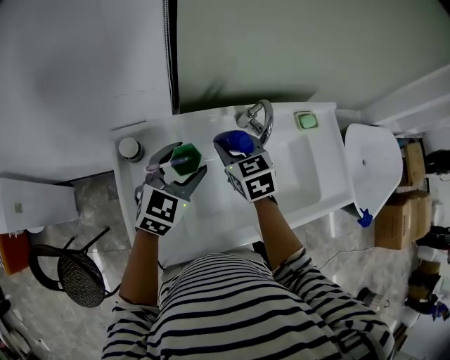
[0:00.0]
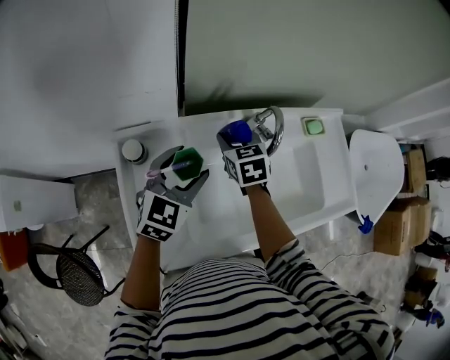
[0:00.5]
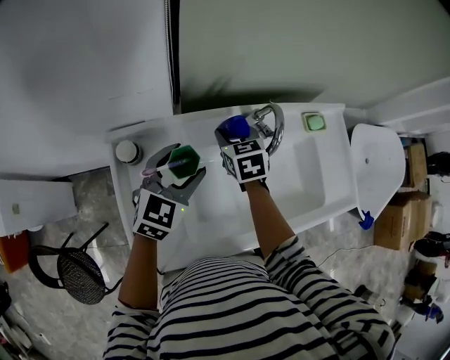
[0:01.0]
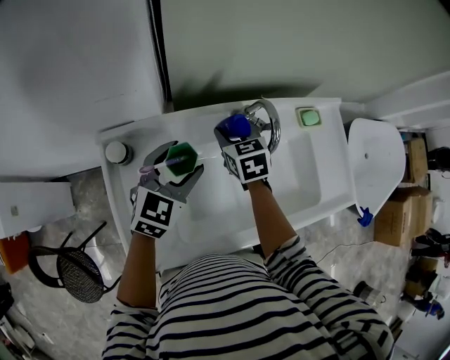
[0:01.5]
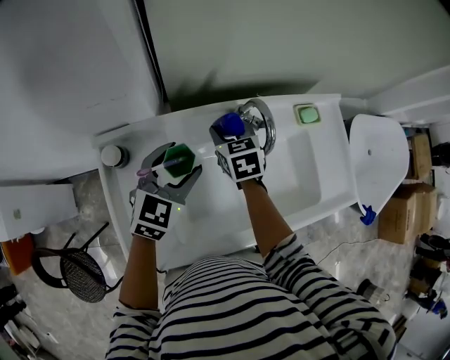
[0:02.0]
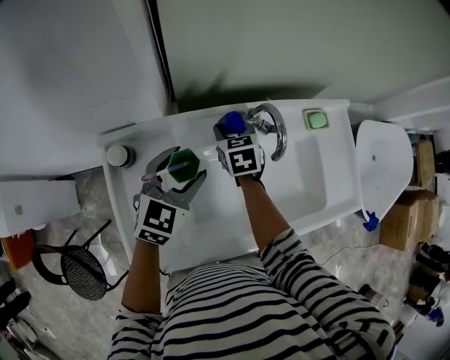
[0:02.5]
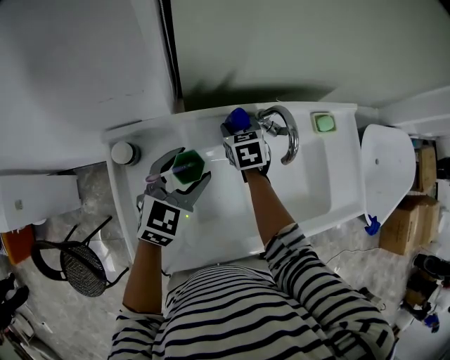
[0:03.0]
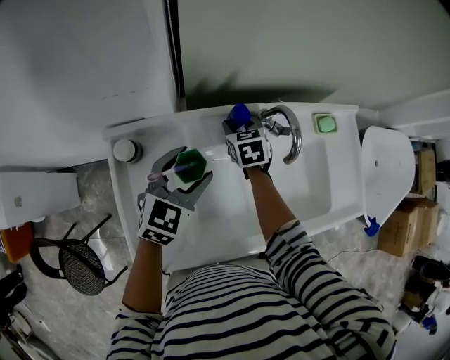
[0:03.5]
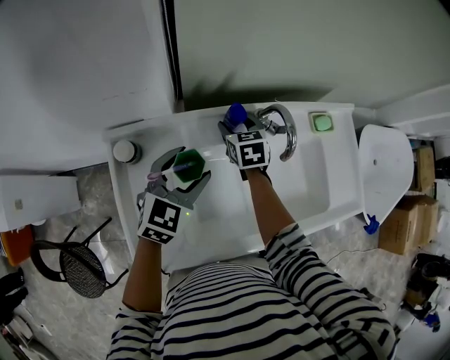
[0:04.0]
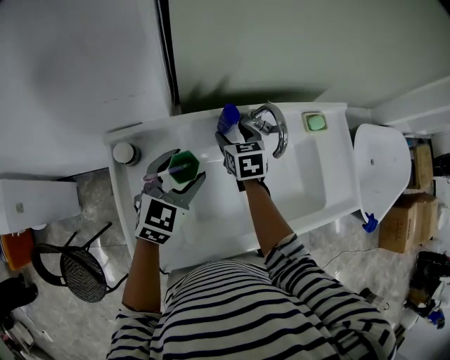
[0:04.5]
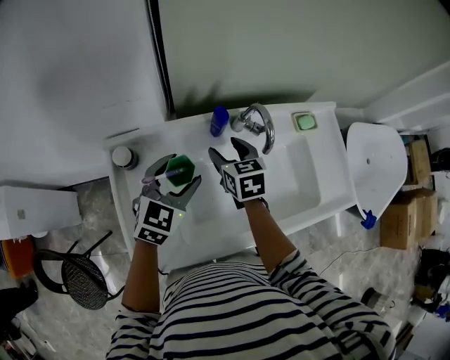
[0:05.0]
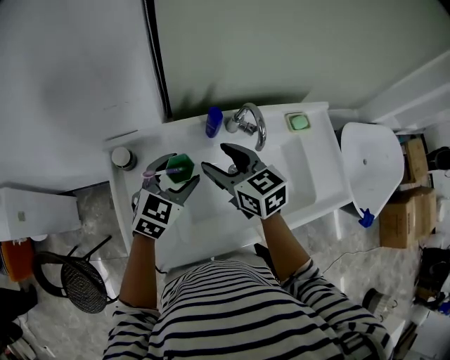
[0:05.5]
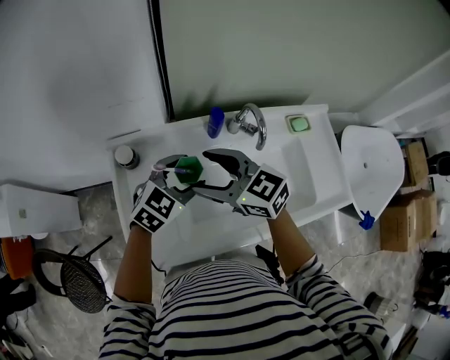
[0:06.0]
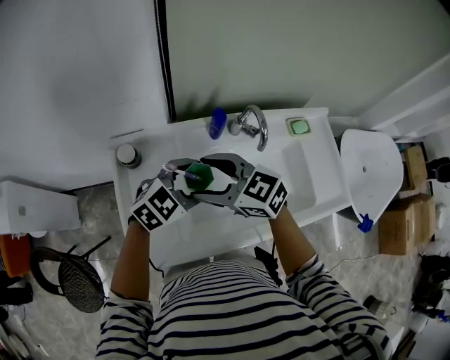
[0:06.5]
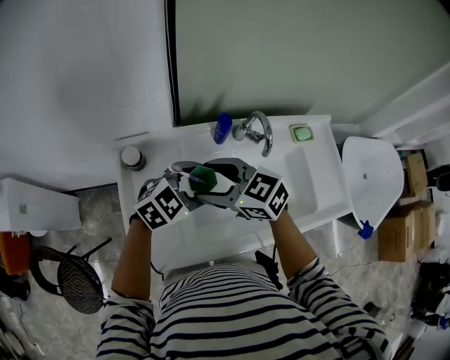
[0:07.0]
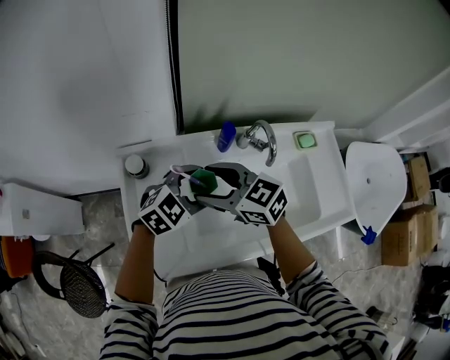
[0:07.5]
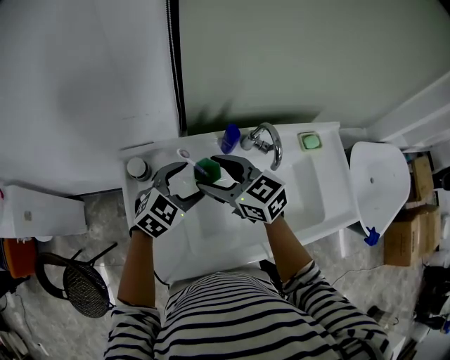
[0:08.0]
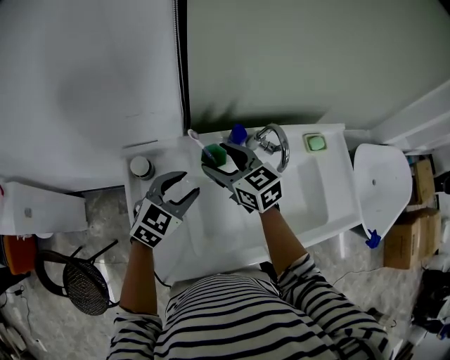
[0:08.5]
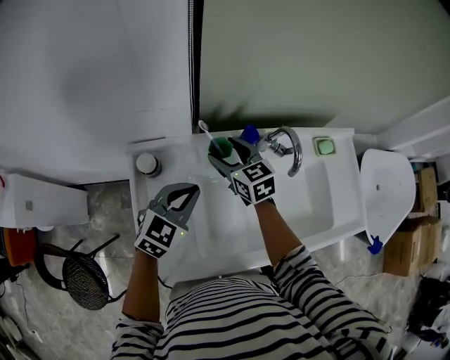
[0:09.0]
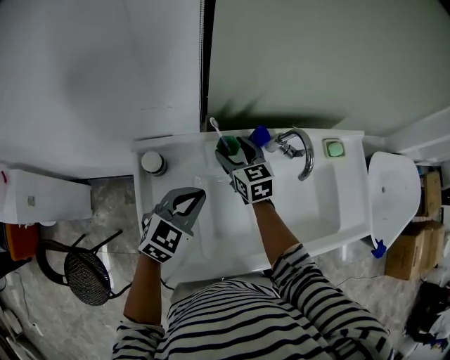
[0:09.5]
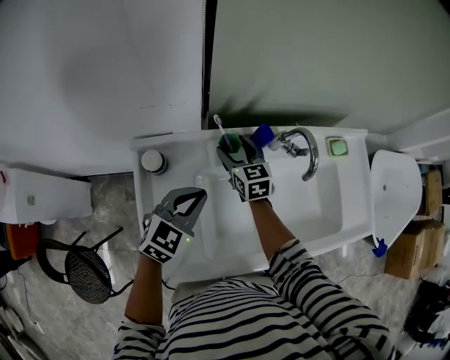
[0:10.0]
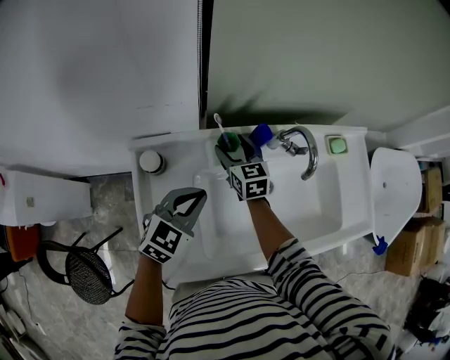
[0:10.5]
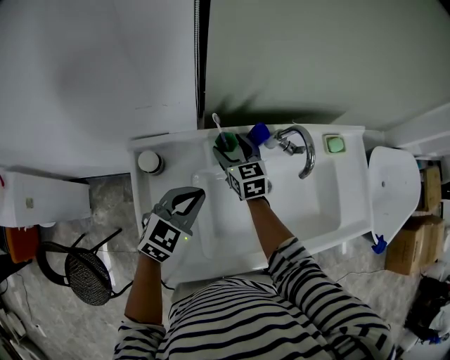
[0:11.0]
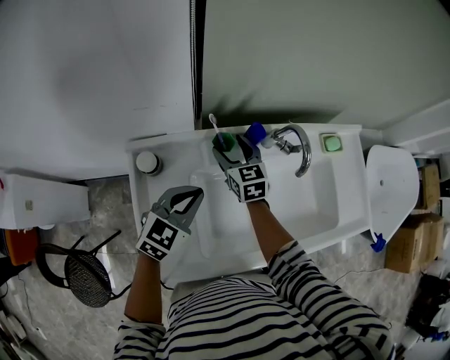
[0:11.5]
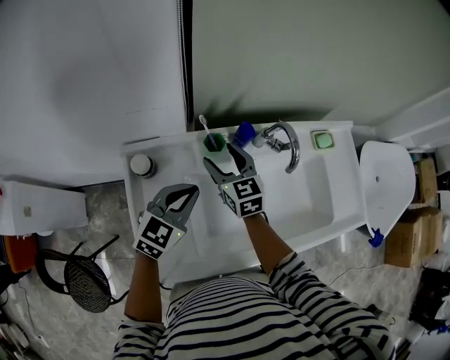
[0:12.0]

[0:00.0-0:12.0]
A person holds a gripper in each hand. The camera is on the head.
0:00.0 to 0:02.0: The left gripper shifts by about 5 cm, while the right gripper is displaced forward and downward by roughly 10 cm.
0:02.0 to 0:04.0: The right gripper shifts by approximately 5 cm.
0:04.0 to 0:06.0: The right gripper moves backward and upward, approximately 30 cm, and changes its angle by roughly 50 degrees; the left gripper shifts approximately 5 cm backward.
0:06.0 to 0:08.0: The left gripper shifts by approximately 5 cm. The right gripper changes place by roughly 5 cm.
0:08.0 to 0:10.0: The right gripper goes approximately 20 cm downward and forward, and turns by some 30 degrees; the left gripper shifts by some 5 cm, and closes.
0:10.0 to 0:12.0: The right gripper heads upward, covering approximately 5 cm.

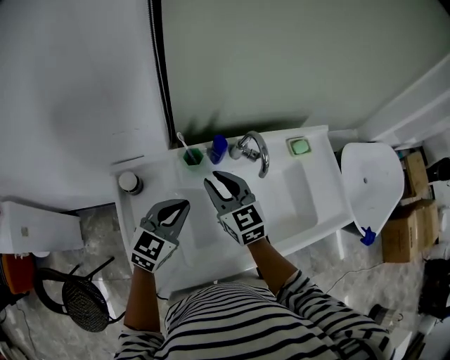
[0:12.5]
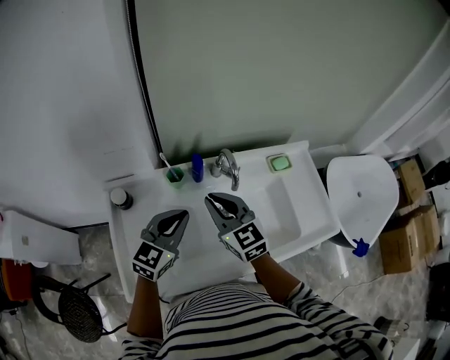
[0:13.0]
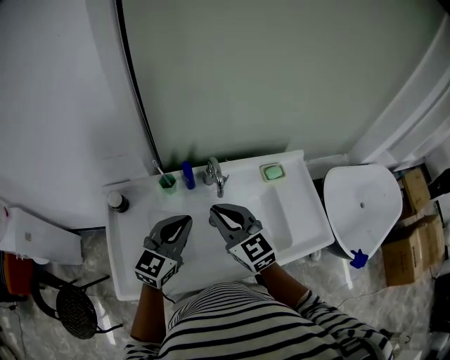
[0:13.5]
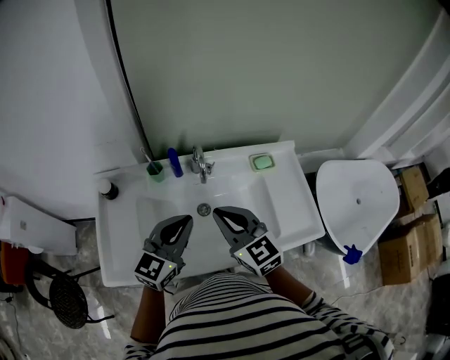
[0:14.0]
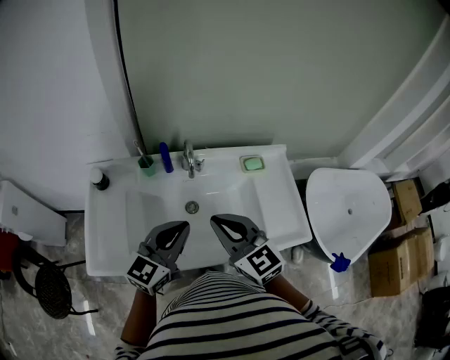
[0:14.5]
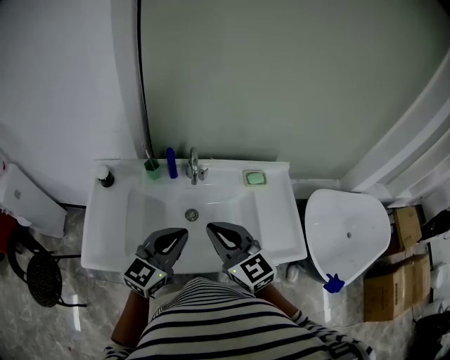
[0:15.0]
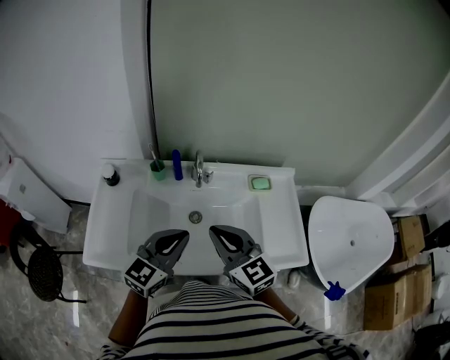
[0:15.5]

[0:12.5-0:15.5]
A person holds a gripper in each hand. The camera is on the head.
0:12.5 to 0:14.0: The left gripper moves to the right, upward and backward, roughly 20 cm, while the right gripper shifts about 25 cm to the right, backward and upward.
0:14.0 to 0:15.5: The left gripper is displaced backward by about 5 cm. The right gripper moves about 5 cm.

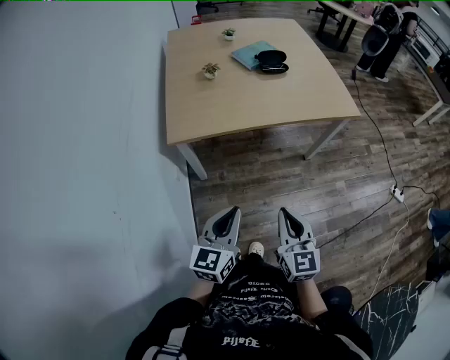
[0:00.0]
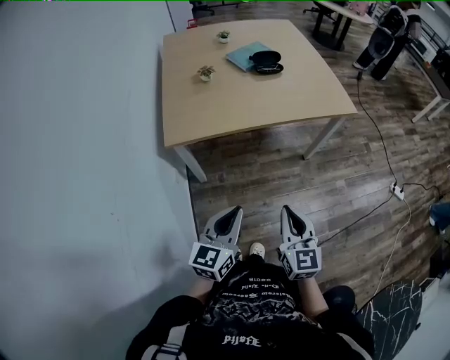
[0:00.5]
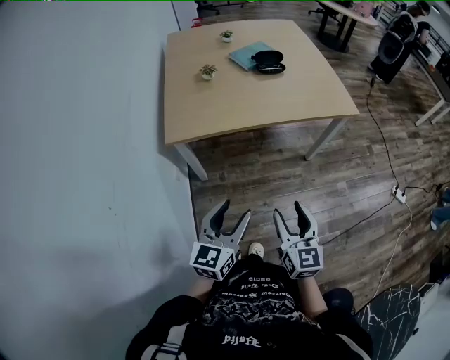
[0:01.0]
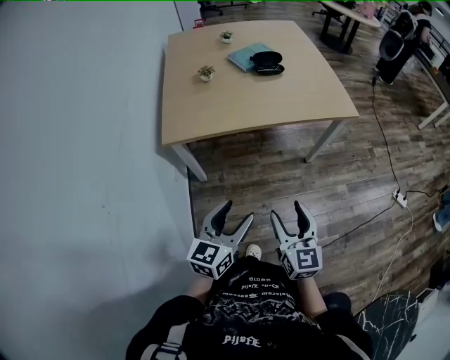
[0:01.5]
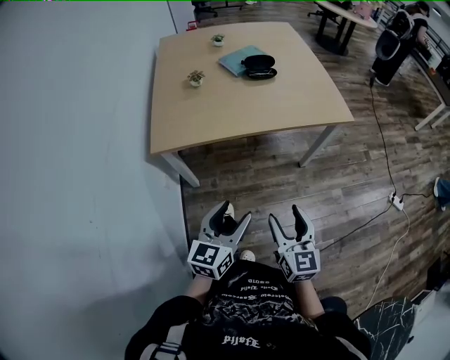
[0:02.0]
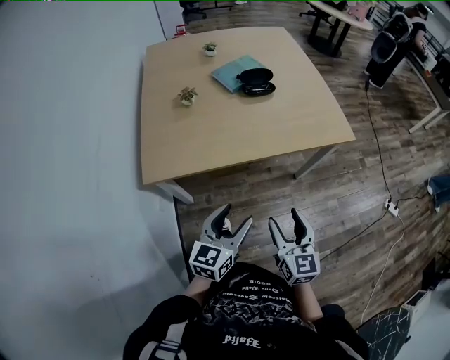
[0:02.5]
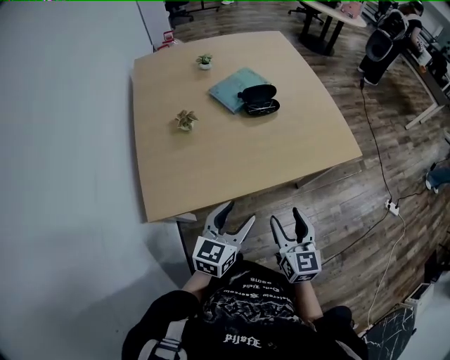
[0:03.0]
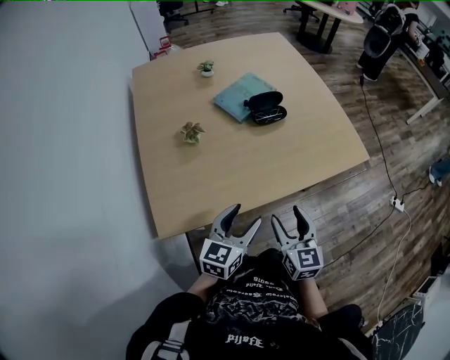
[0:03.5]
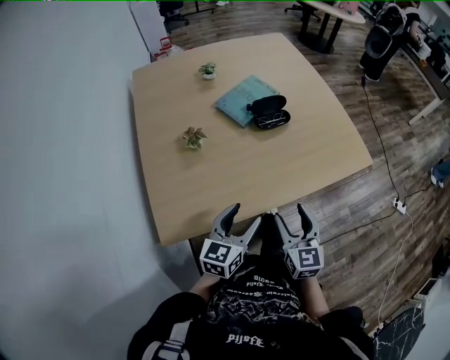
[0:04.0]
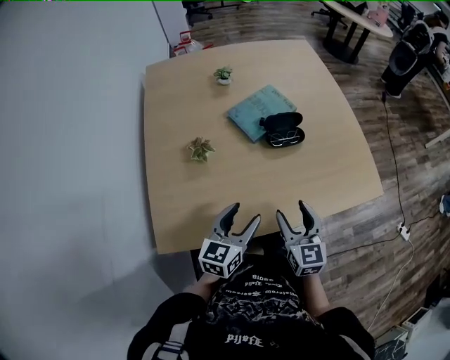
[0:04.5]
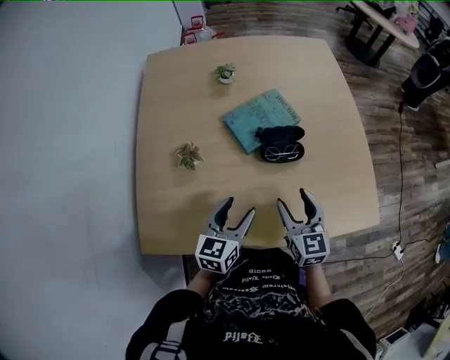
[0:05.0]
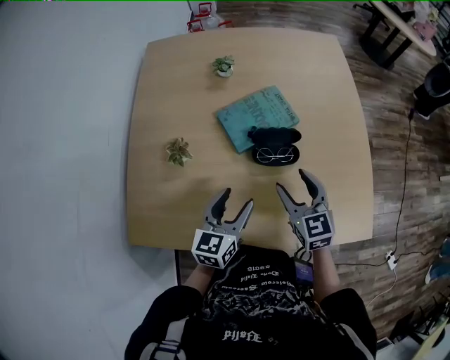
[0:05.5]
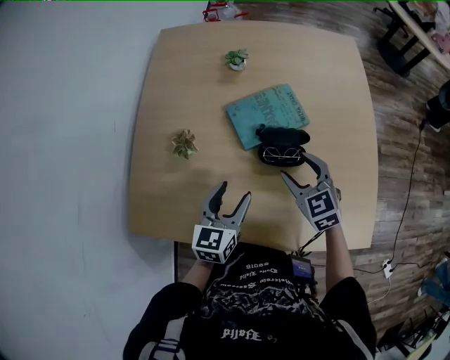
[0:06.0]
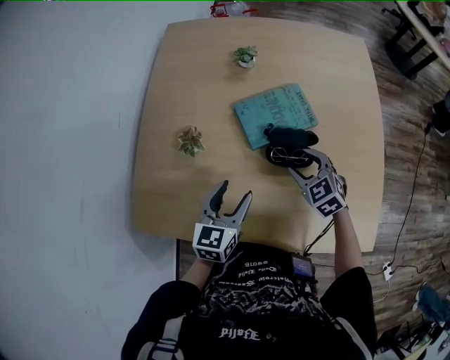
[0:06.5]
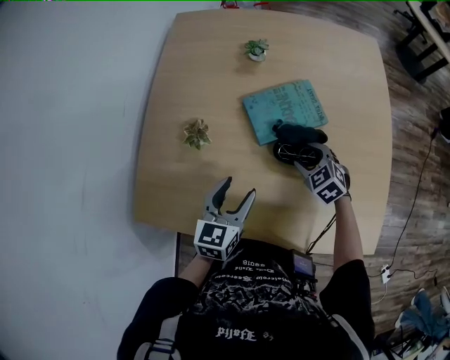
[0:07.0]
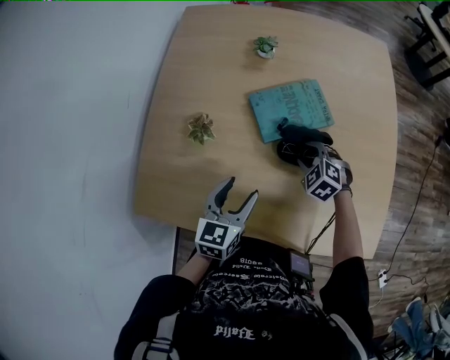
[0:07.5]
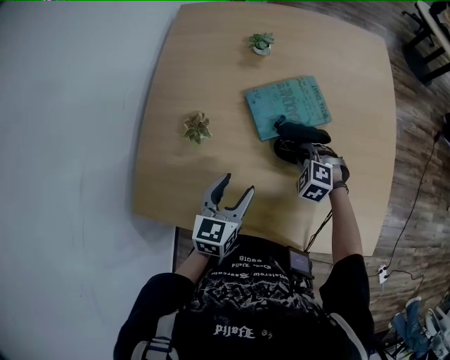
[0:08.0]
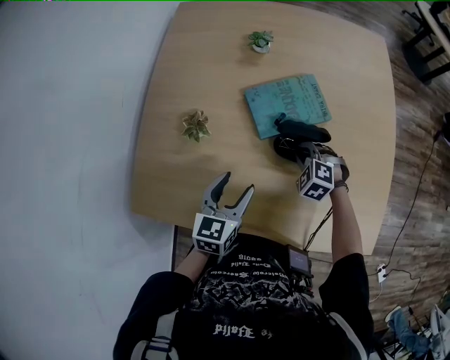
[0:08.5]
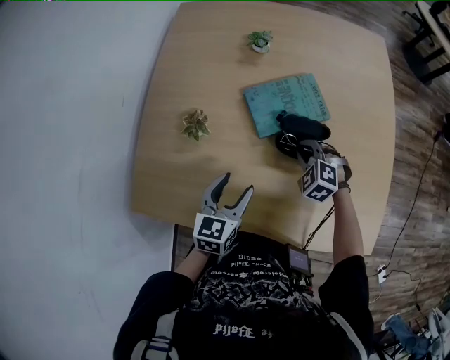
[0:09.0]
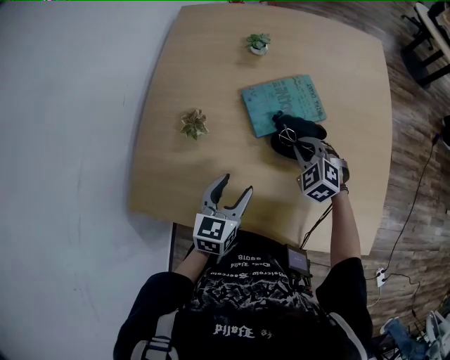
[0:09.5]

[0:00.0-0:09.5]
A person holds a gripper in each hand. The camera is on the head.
0:00.0 to 0:02.0: The right gripper is displaced to the right by approximately 10 cm, and opens its fingers. Meanwhile the left gripper is displaced to the right and forward by roughly 10 cm, and opens.
0:02.0 to 0:04.0: The grippers both shift forward and to the left by about 35 cm.
0:04.0 to 0:05.5: The right gripper changes place by some 30 cm, and changes its angle by some 30 degrees. Meanwhile the left gripper changes place by roughly 25 cm, and rotates roughly 20 degrees.
0:05.5 to 0:07.5: The right gripper heads downward and forward, covering about 15 cm, and tilts its fingers roughly 30 degrees downward.
0:07.5 to 0:09.5: The right gripper closes up.

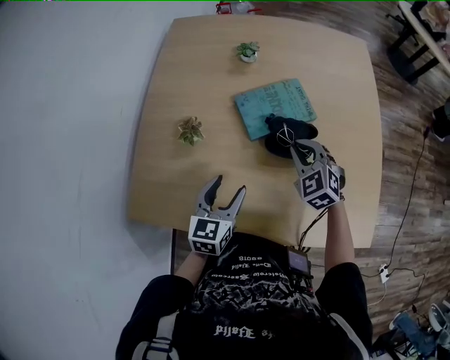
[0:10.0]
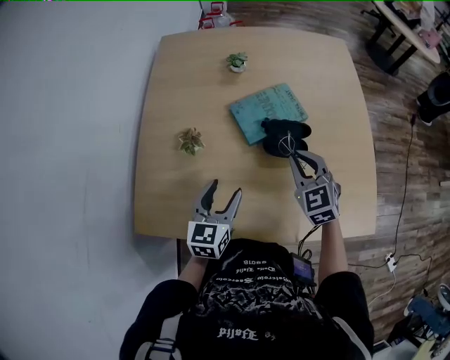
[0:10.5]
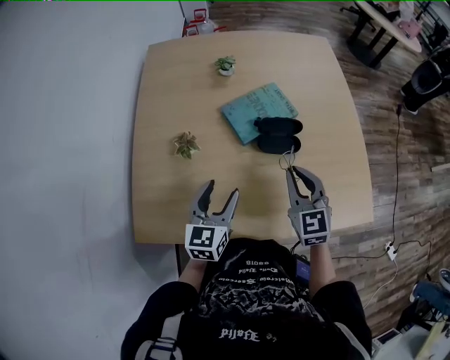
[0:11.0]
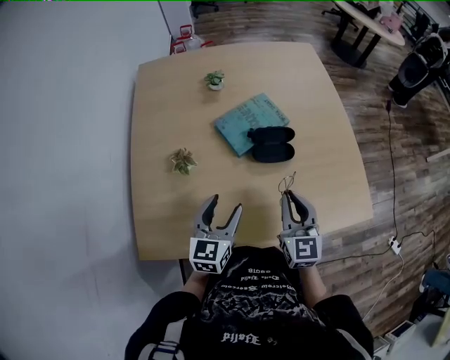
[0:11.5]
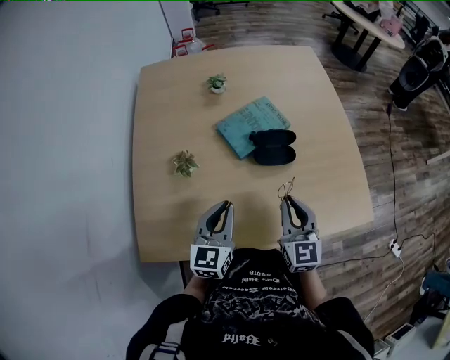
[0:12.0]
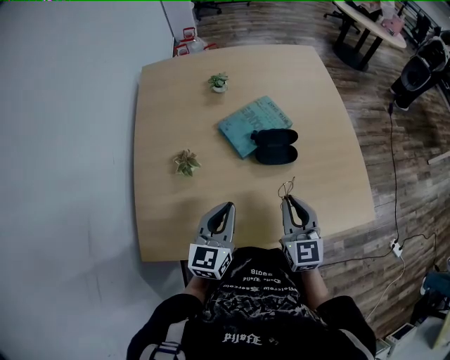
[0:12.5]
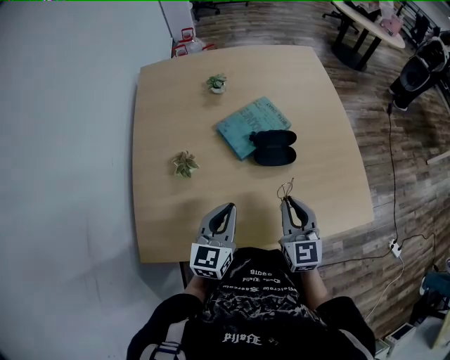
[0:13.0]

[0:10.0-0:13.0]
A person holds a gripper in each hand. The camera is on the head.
0:10.0 to 0:11.5: The left gripper ends up about 5 cm from where it was. The right gripper travels backward and upward by approximately 15 cm, and rotates roughly 50 degrees.
0:11.5 to 0:13.0: The left gripper closes its fingers.
